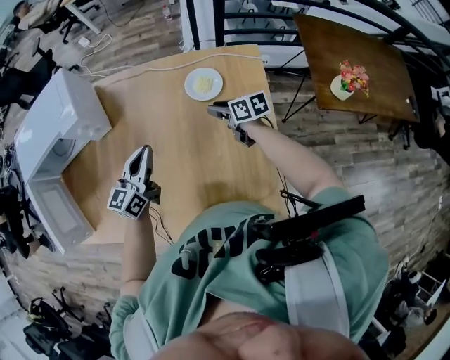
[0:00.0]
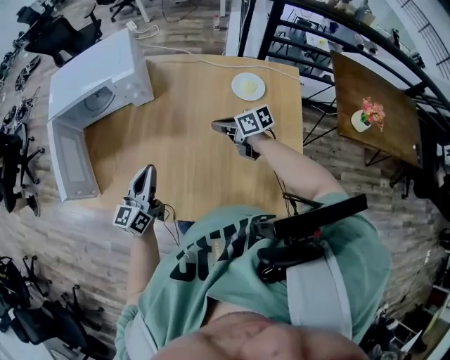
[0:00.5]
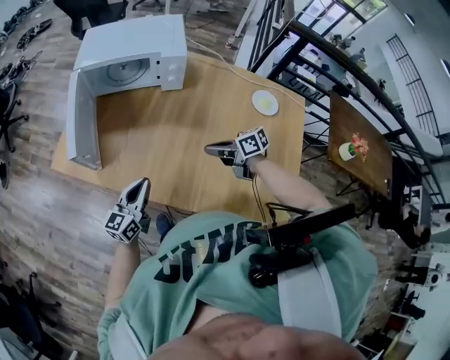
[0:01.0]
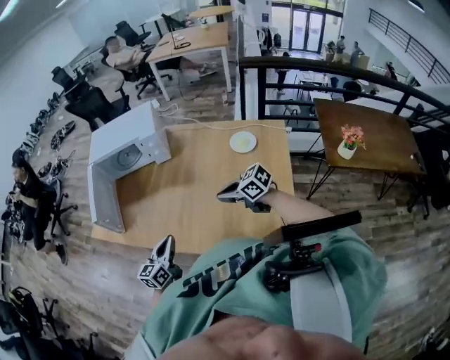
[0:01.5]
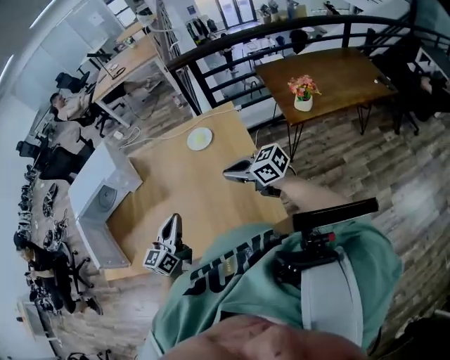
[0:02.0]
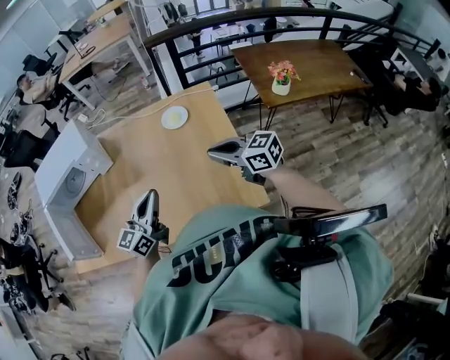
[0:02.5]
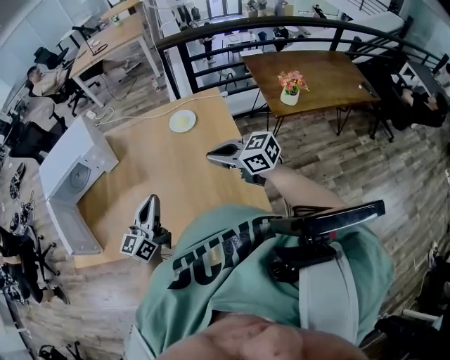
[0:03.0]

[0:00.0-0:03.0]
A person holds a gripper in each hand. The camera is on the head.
0:00.0 to 0:01.5: The left gripper changes place by approximately 35 cm, while the right gripper shifts by roughly 35 cm, turns by about 50 degrees, and closes.
0:01.5 to 0:03.0: The left gripper moves approximately 20 cm, and swivels about 30 degrees. Meanwhile the right gripper moves approximately 20 cm, and changes its angle by approximately 30 degrees.

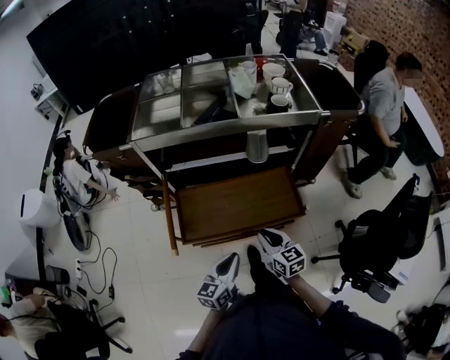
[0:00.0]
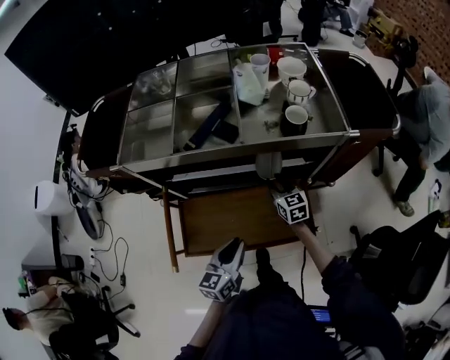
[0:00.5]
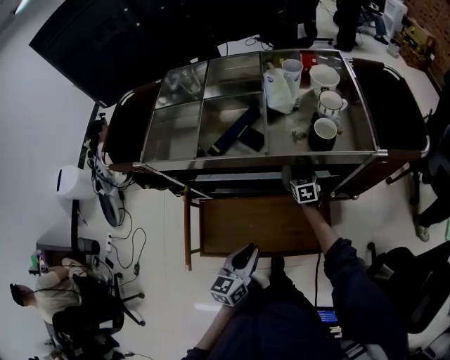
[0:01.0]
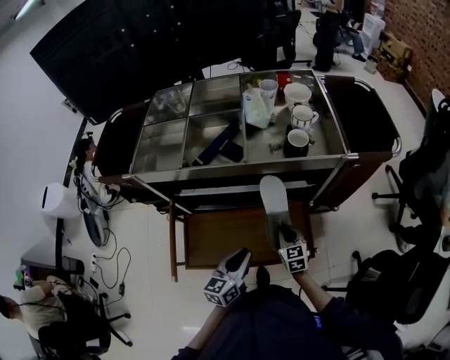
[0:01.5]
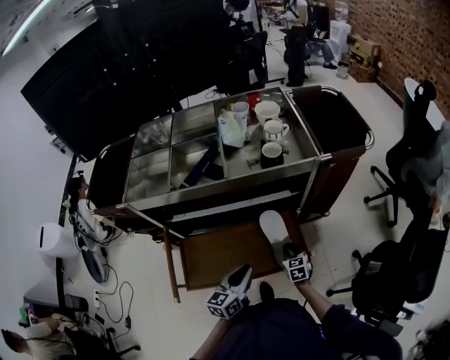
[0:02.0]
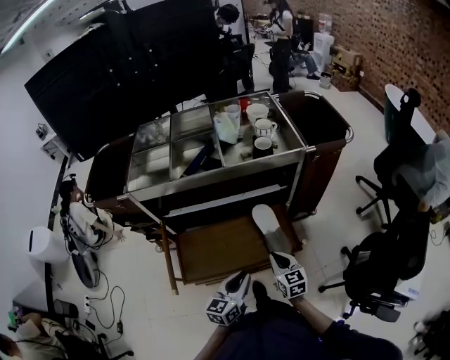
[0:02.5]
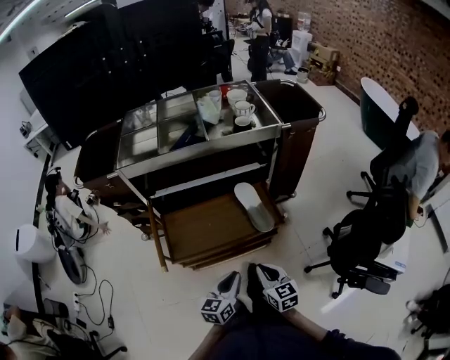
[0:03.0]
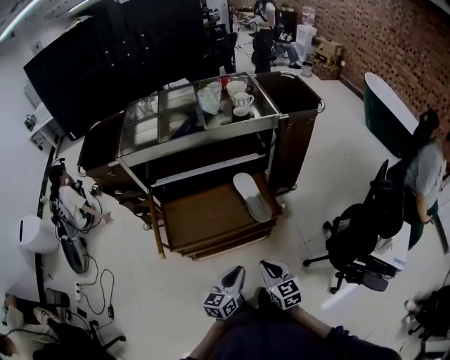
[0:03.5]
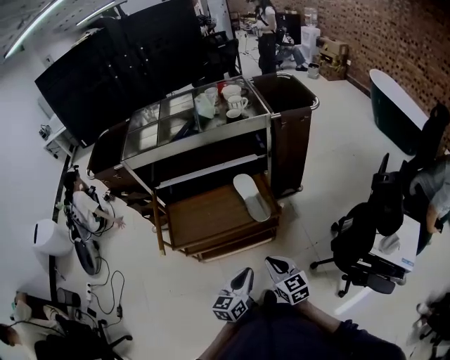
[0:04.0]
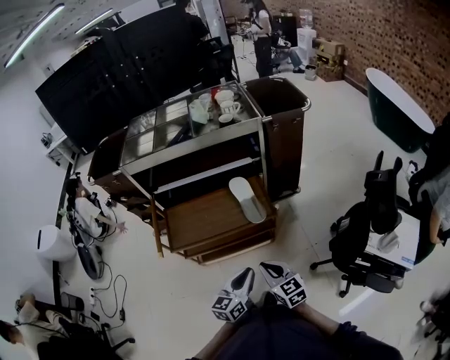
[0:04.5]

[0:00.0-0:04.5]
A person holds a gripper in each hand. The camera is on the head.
0:00.0 to 0:02.0: The left gripper is displaced forward and to the right by roughly 20 cm, while the right gripper is displaced forward, to the right and downward by roughly 25 cm, and rotates about 20 degrees.
0:02.0 to 0:04.5: The right gripper is displaced backward and upward by about 40 cm, and rotates approximately 20 degrees. Meanwhile the left gripper shifts some 30 cm backward and to the right.

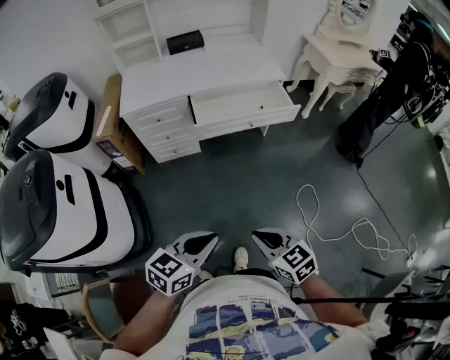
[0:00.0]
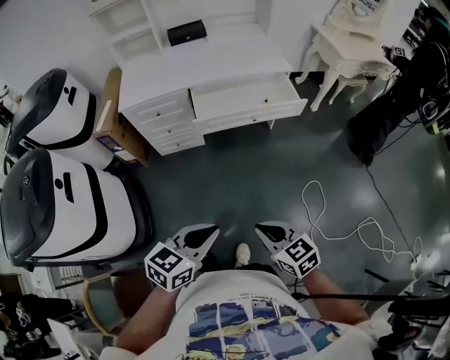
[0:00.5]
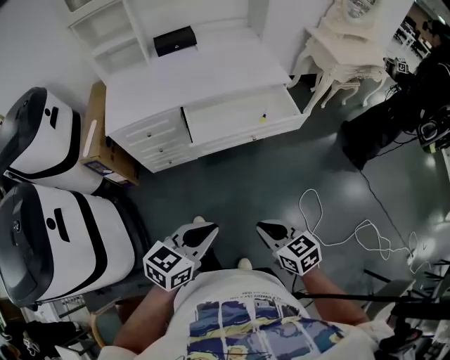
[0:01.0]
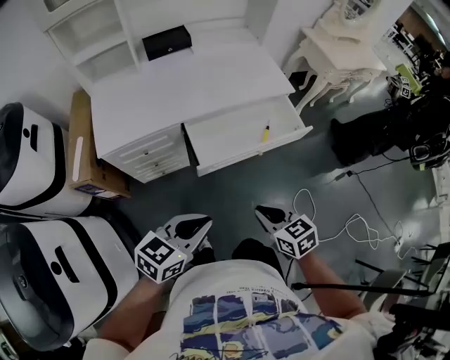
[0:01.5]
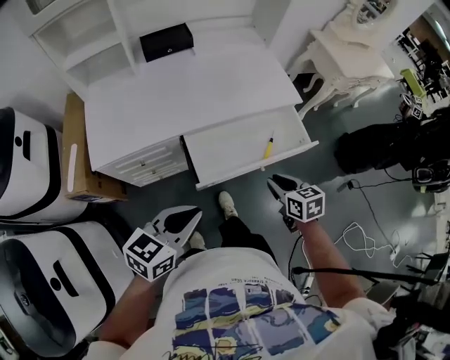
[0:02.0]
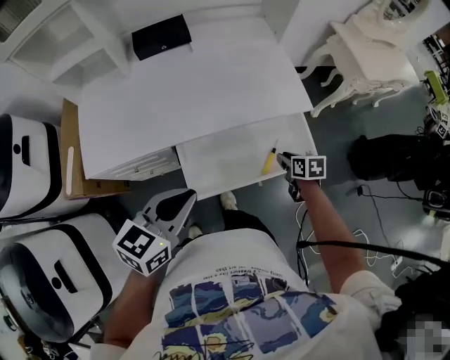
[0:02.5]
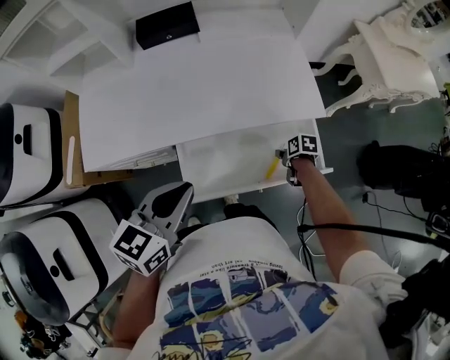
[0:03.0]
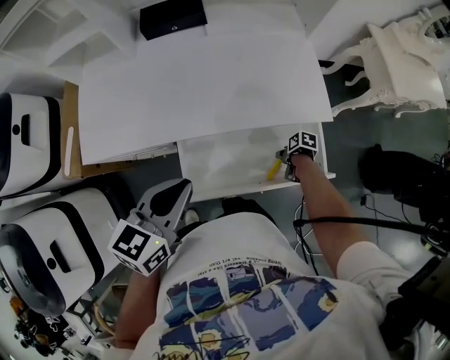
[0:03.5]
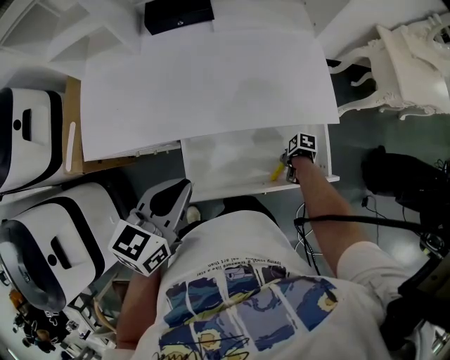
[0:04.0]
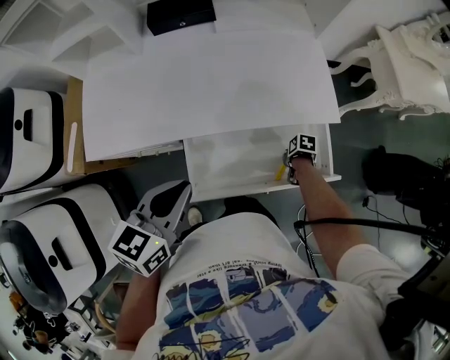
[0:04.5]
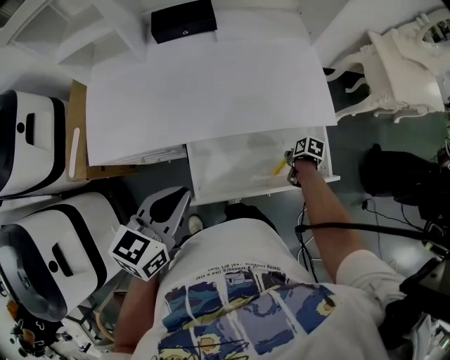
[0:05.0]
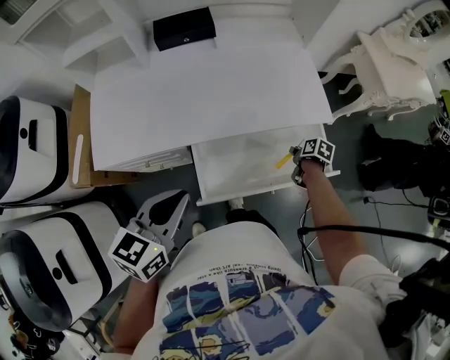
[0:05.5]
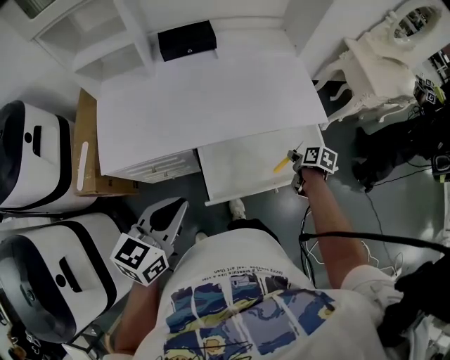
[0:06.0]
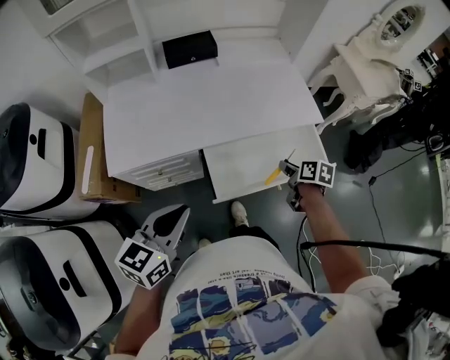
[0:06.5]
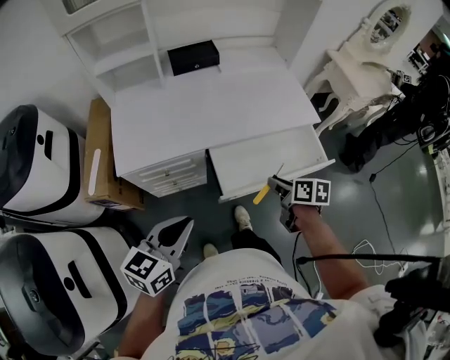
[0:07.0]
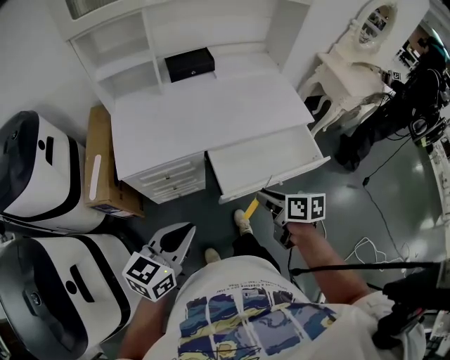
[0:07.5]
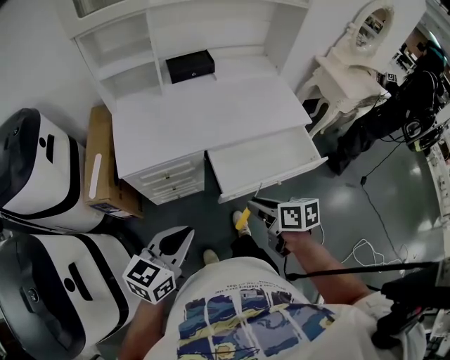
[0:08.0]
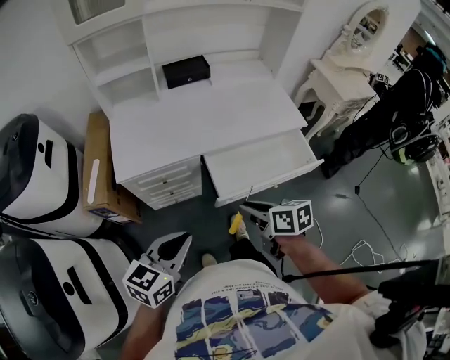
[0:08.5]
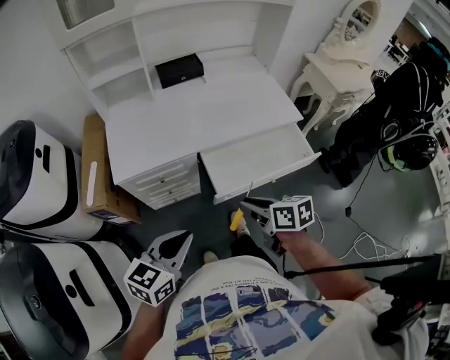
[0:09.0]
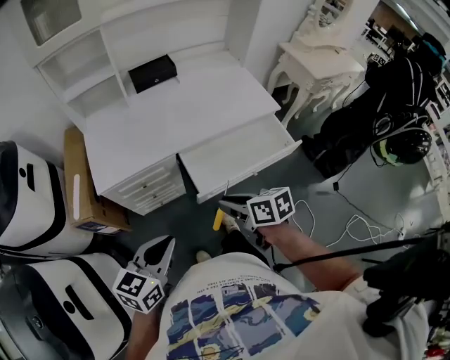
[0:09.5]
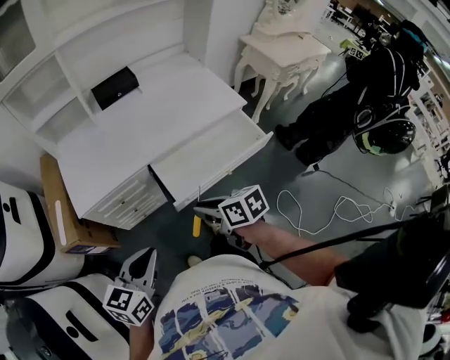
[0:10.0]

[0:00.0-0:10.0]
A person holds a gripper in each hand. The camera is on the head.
0:00.0 to 0:02.0: The pair of grippers is taken forward, about 40 cm. The right gripper changes its angle by some 30 degrees.
0:02.0 to 0:04.0: The left gripper moves roughly 20 cm, and changes its angle by about 30 degrees; the right gripper heads downward, covering approximately 25 cm, and changes its angle by some 60 degrees.
0:04.0 to 0:06.0: The left gripper changes place by some 10 cm; the right gripper heads upward, covering some 15 cm, and turns by approximately 40 degrees.
0:06.0 to 0:08.0: The left gripper shifts roughly 15 cm backward and to the left, while the right gripper heads backward, to the left and upward, covering about 40 cm, and swivels about 30 degrees.
0:08.0 to 0:10.0: The grippers move only a little.

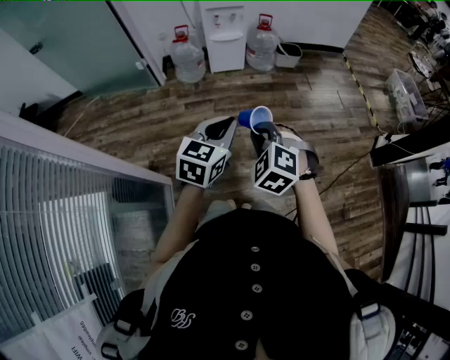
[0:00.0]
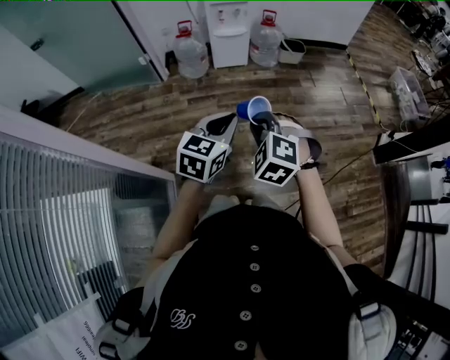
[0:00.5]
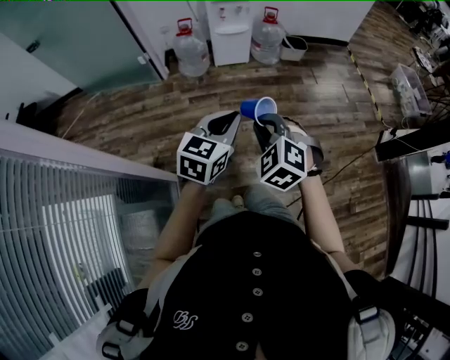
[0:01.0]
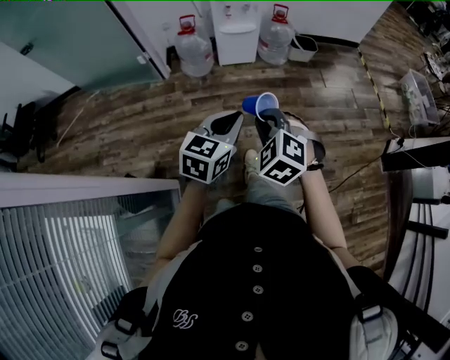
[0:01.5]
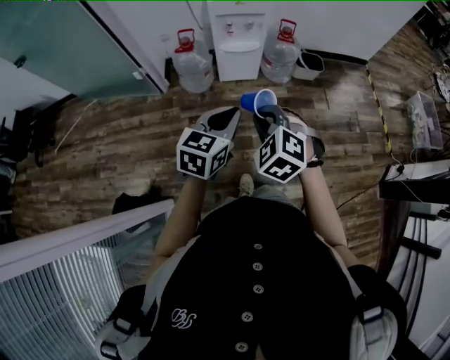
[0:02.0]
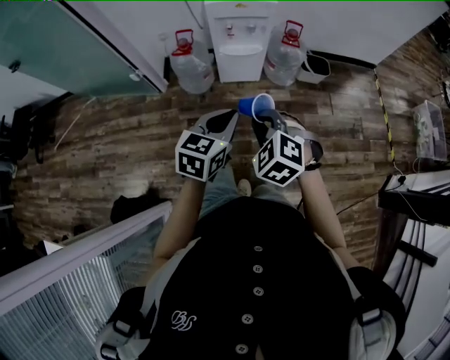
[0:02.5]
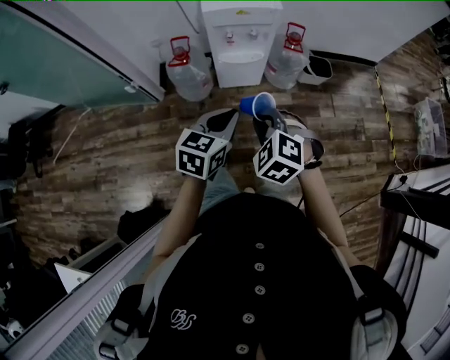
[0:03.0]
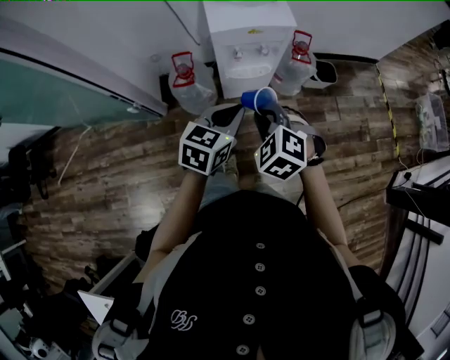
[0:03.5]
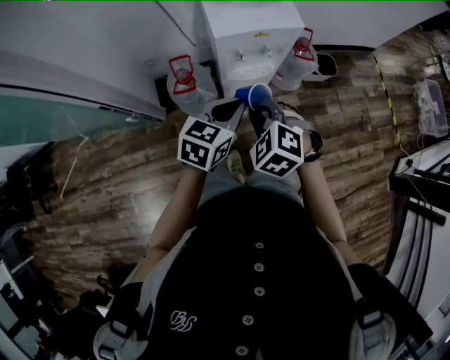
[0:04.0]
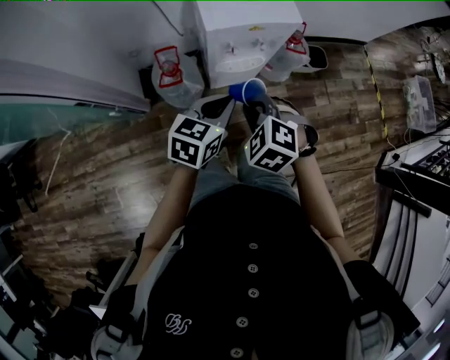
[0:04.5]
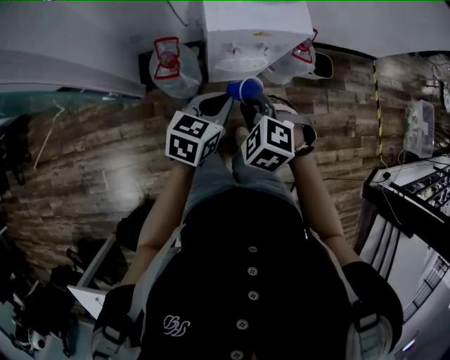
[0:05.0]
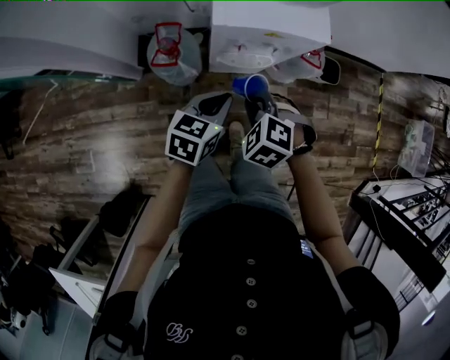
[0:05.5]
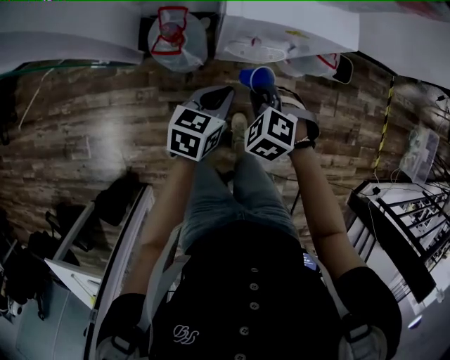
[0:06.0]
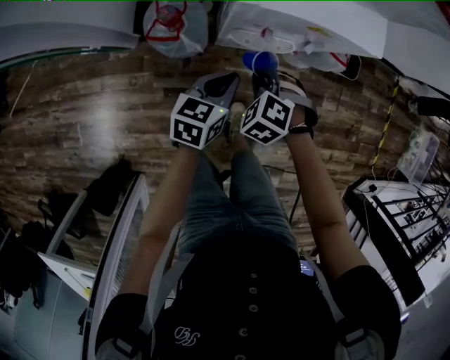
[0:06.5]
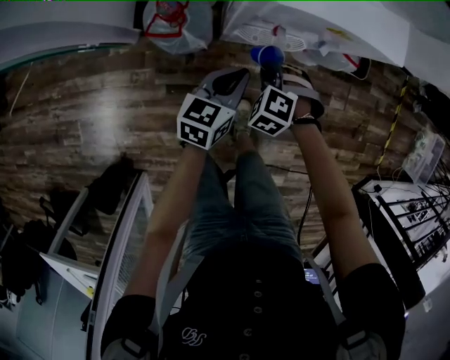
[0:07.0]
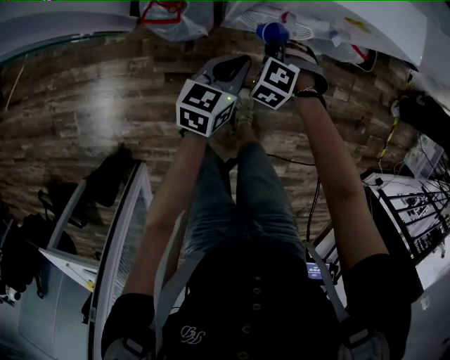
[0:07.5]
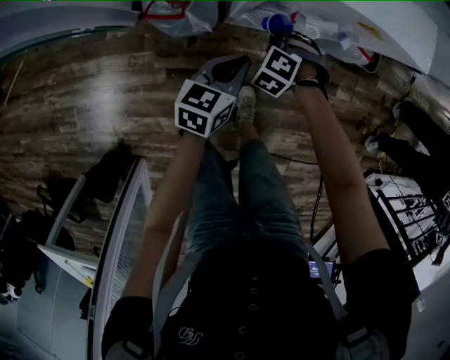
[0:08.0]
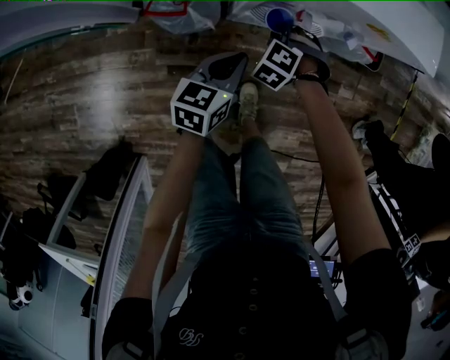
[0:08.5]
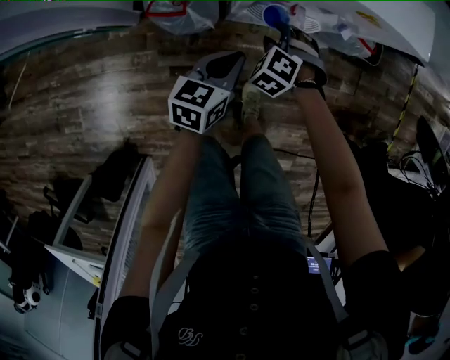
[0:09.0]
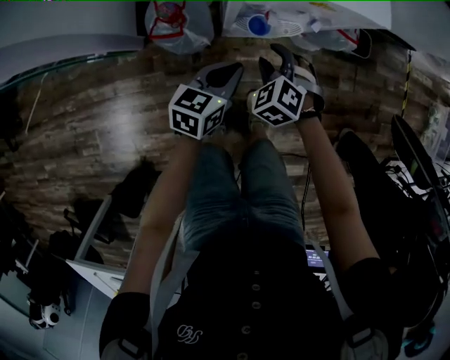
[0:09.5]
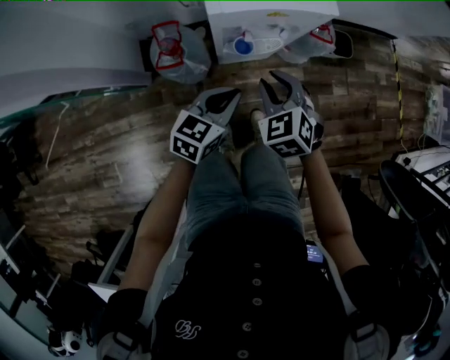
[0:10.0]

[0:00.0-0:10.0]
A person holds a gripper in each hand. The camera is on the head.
0:00.0 to 0:02.0: Both grippers move forward, some 30 cm.
0:02.0 to 0:04.0: The right gripper shifts roughly 35 cm forward and to the left; the left gripper moves forward, approximately 35 cm.
0:04.0 to 0:06.0: The two grippers go some 20 cm downward and forward. The right gripper rotates approximately 20 degrees; the left gripper turns by approximately 20 degrees.
0:06.0 to 0:08.0: The left gripper shifts roughly 10 cm downward; the right gripper goes roughly 25 cm downward and forward.
0:08.0 to 0:10.0: The left gripper moves upward, some 15 cm, and rotates approximately 20 degrees. Meanwhile the right gripper travels upward by approximately 25 cm, and rolls clockwise, seen from behind, by about 40 degrees.
